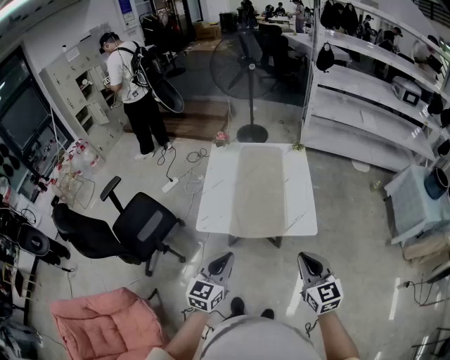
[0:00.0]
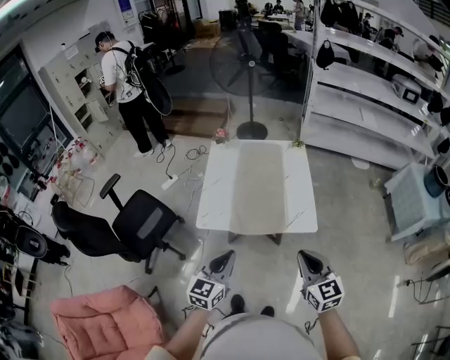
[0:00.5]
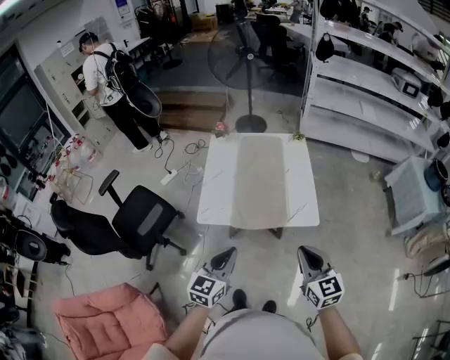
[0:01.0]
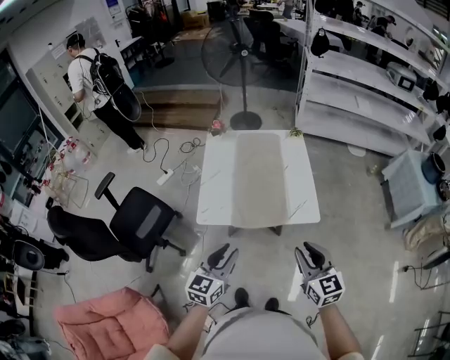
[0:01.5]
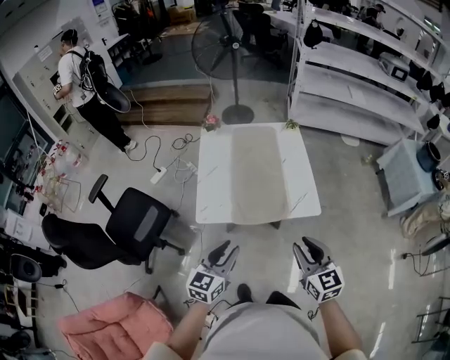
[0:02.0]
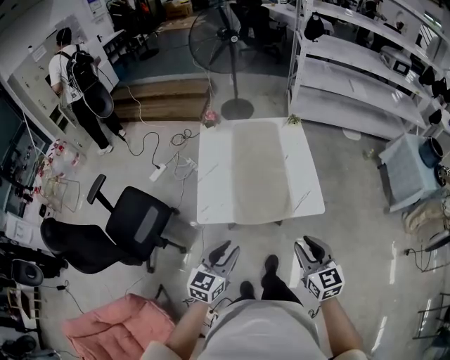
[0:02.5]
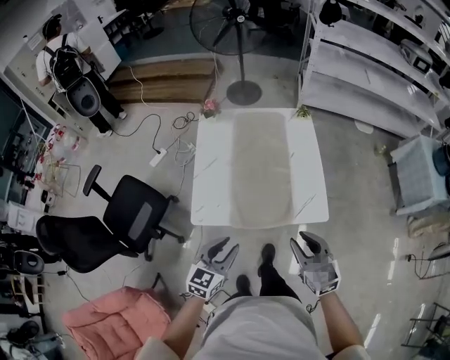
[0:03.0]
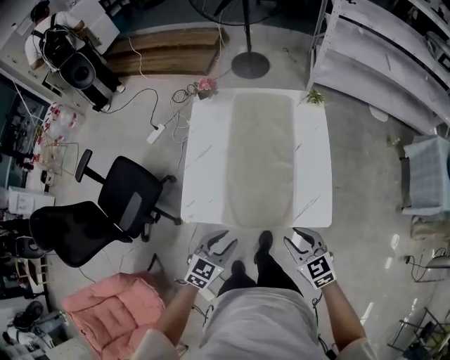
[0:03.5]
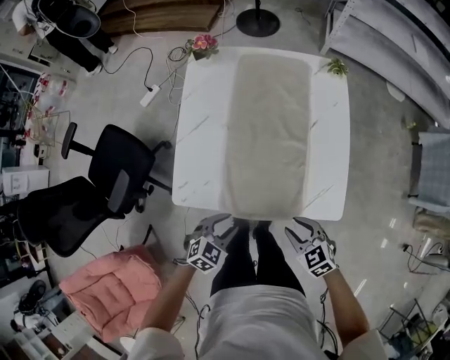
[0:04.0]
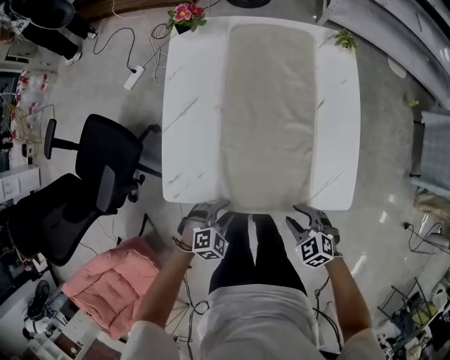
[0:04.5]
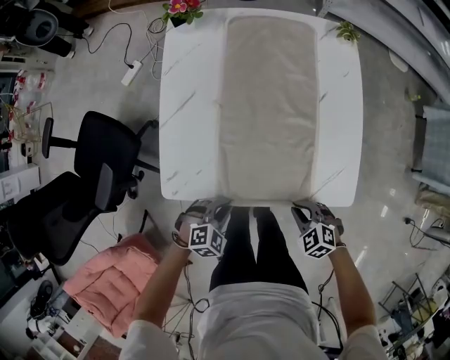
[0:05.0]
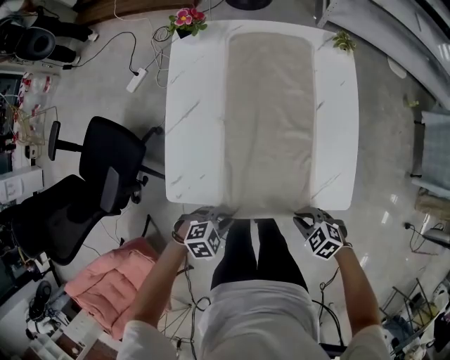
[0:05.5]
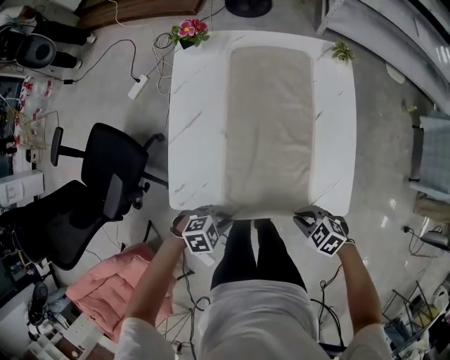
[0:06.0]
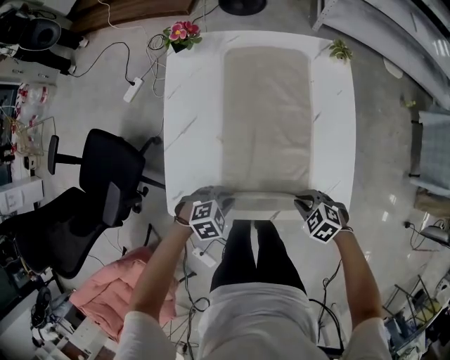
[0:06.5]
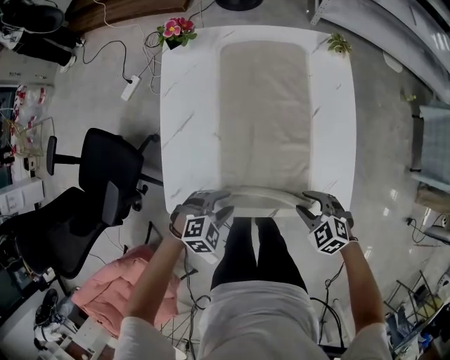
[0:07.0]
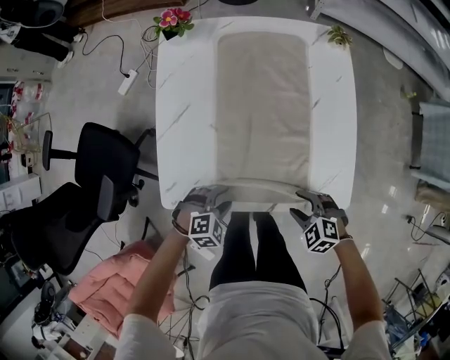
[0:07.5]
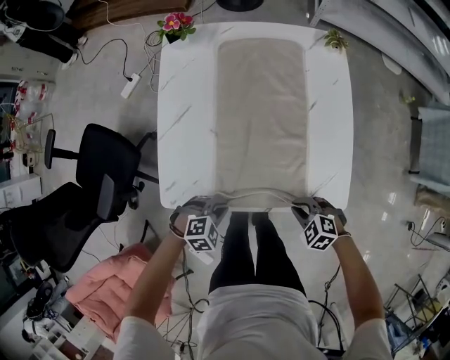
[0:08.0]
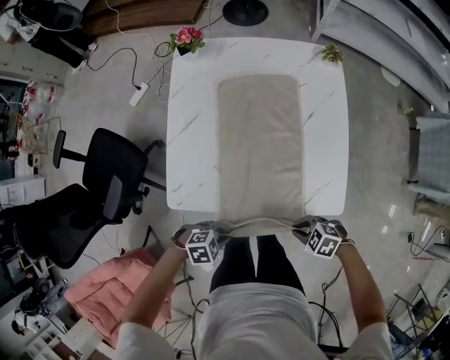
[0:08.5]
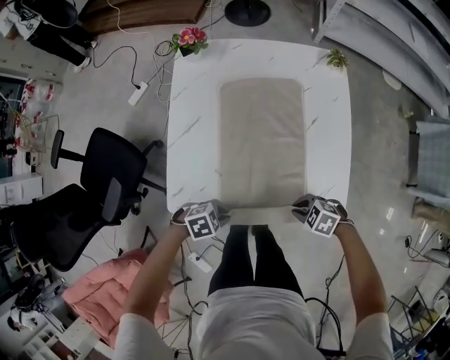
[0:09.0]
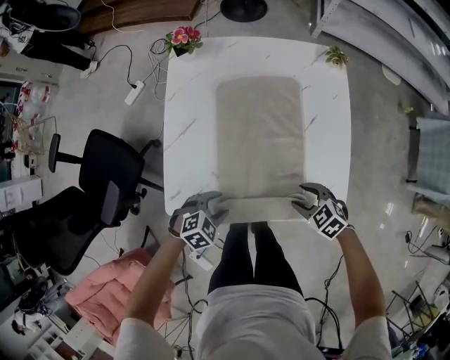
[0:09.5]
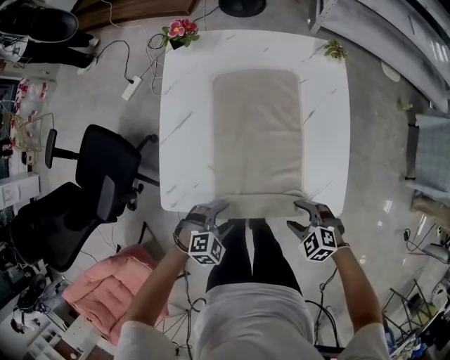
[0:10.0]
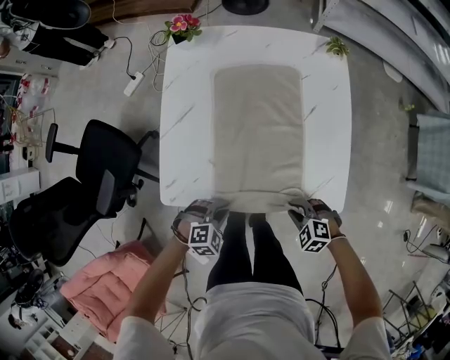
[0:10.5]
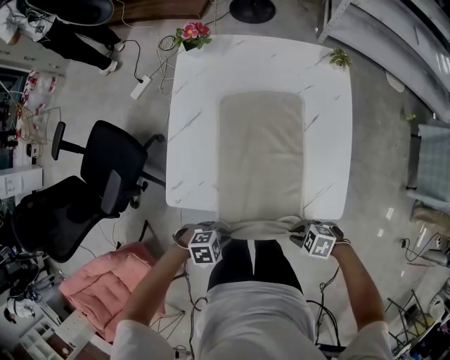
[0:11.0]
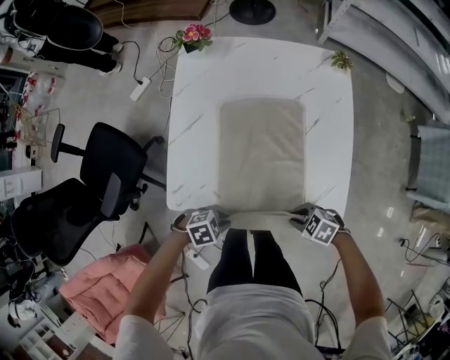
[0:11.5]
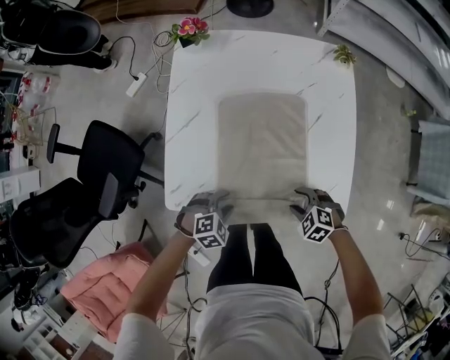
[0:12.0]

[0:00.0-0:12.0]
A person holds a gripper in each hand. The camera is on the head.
0:00.0 to 0:02.0: The left gripper ends up roughly 5 cm from where it was, and opens. The right gripper heads to the left, covering about 5 cm, and opens up.
0:02.0 to 0:04.0: The two grippers go roughly 35 cm downward and forward. The right gripper tips its fingers downward by roughly 30 degrees. Meanwhile the left gripper tips its fingers downward by approximately 40 degrees.
0:04.0 to 0:06.0: The left gripper turns by approximately 40 degrees, and closes its fingers; the right gripper goes roughly 5 cm downward, changes its angle by some 20 degrees, and closes its fingers.
0:06.0 to 0:08.0: The left gripper opens, then closes once more, while the right gripper ends up approximately 5 cm from where it was, and opens, then closes again.
0:08.0 to 0:10.0: The left gripper opens up; the right gripper opens.
0:10.0 to 0:12.0: The right gripper moves roughly 5 cm, and closes and opens again; the left gripper closes and opens again.

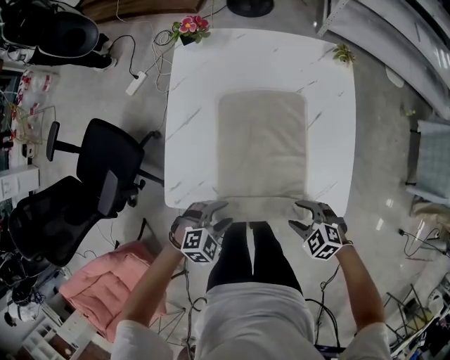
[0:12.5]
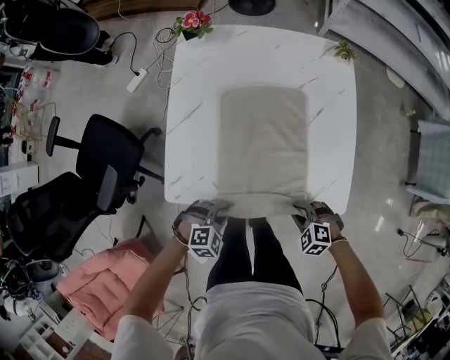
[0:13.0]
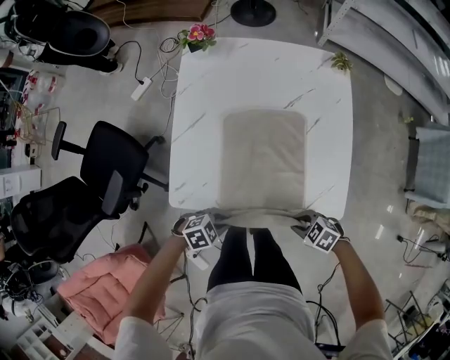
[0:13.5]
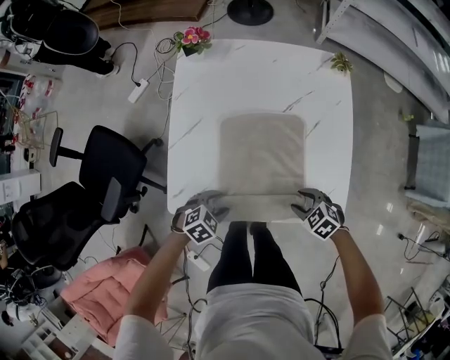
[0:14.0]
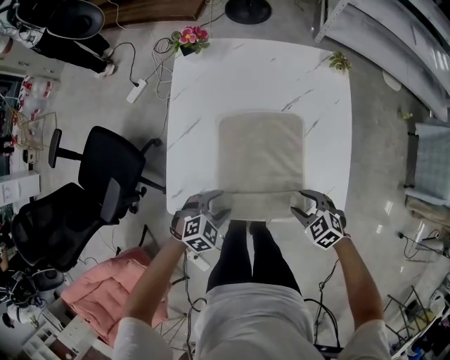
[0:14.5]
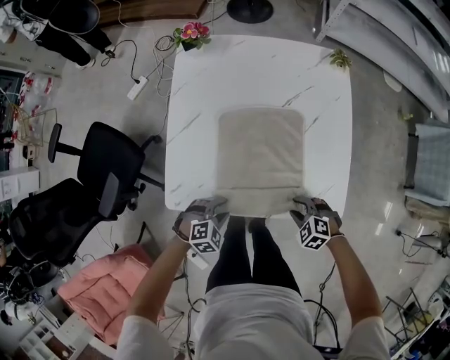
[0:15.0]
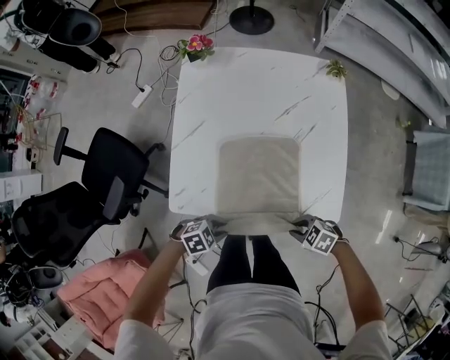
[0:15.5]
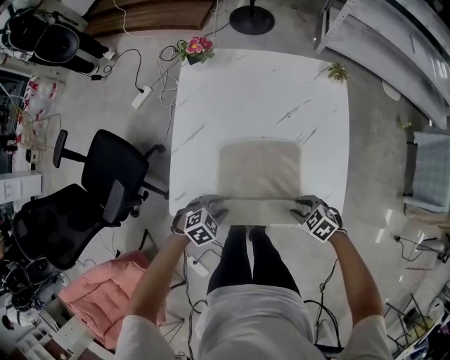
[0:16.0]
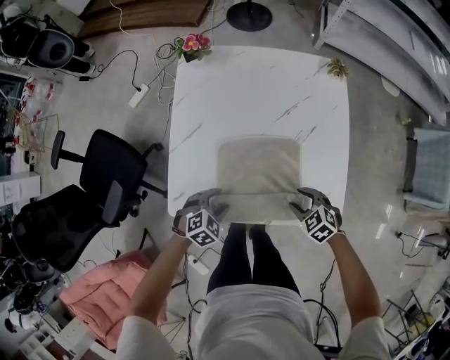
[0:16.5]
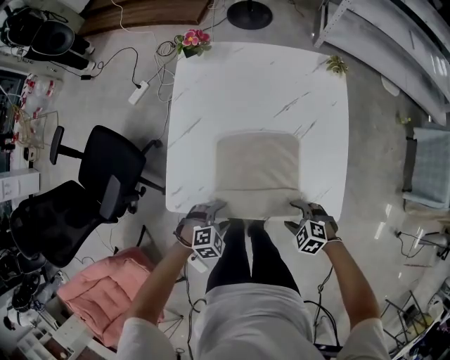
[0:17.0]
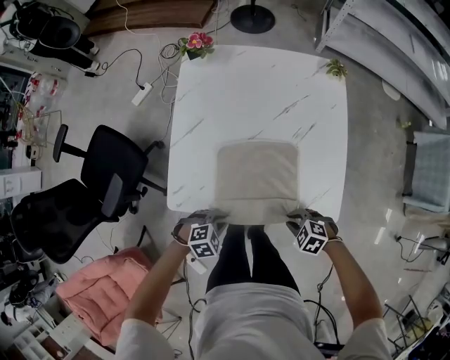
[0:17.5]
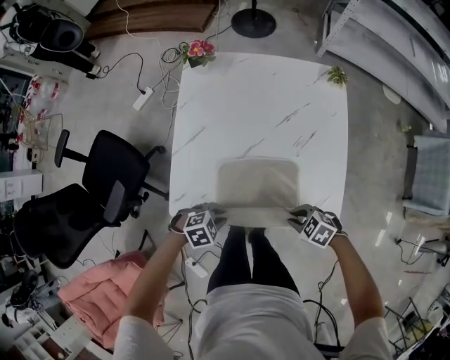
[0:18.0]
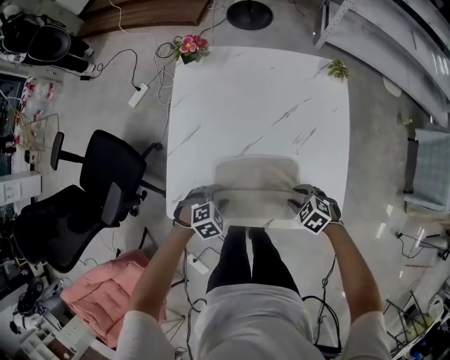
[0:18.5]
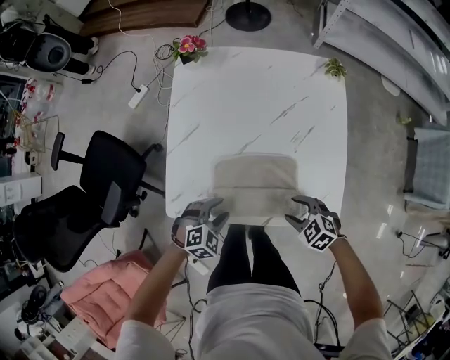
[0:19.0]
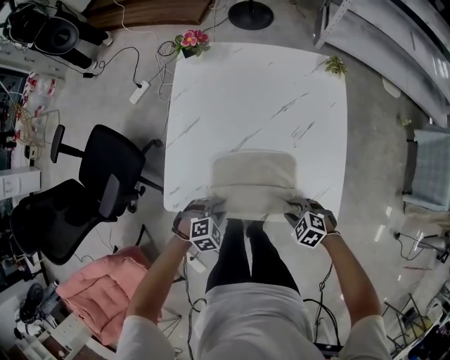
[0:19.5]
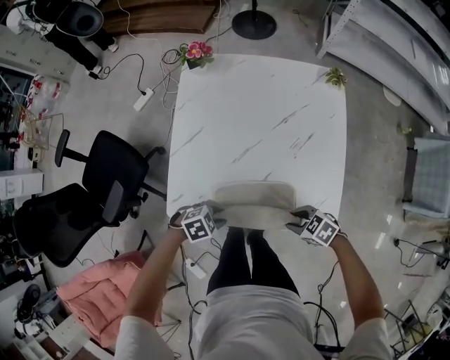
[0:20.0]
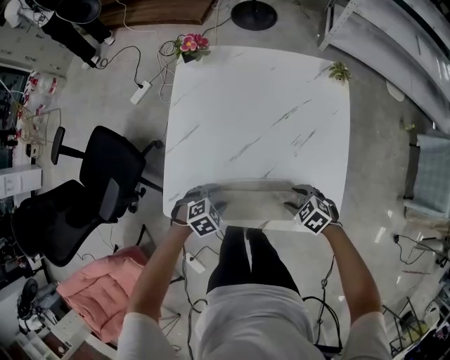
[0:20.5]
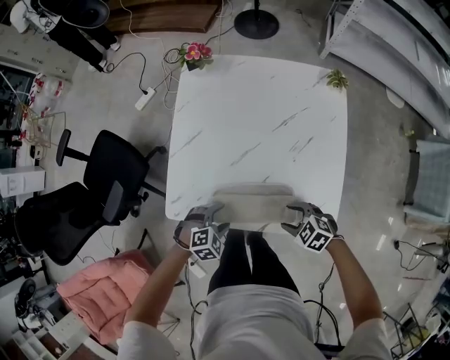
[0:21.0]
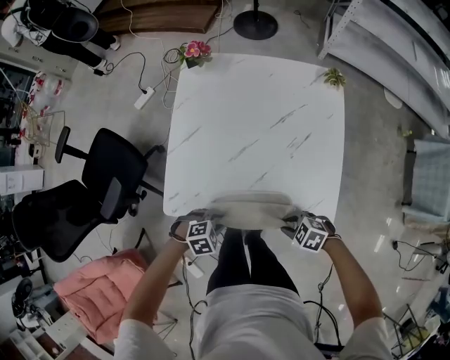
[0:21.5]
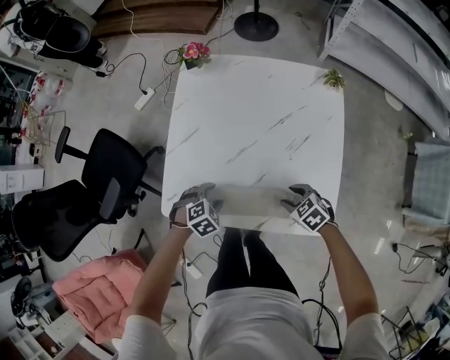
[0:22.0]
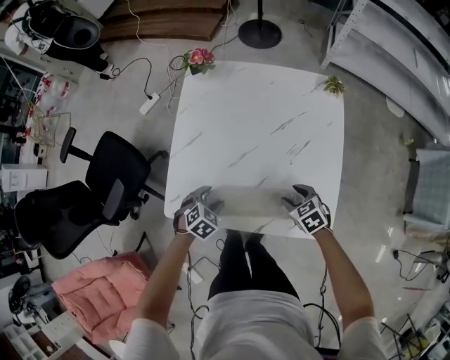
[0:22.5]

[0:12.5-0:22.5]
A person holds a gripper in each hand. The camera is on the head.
0:12.5 to 0:14.5: The left gripper ends up some 5 cm from where it was, and closes, then opens again. Meanwhile the right gripper moves roughly 5 cm, and closes, then opens again.
0:14.5 to 0:16.5: The right gripper closes and opens again. The left gripper closes, then opens again.
0:16.5 to 0:18.5: The left gripper closes, then opens again.
0:20.5 to 0:22.5: The right gripper closes and opens again, while the left gripper rotates about 20 degrees, and closes and opens again.

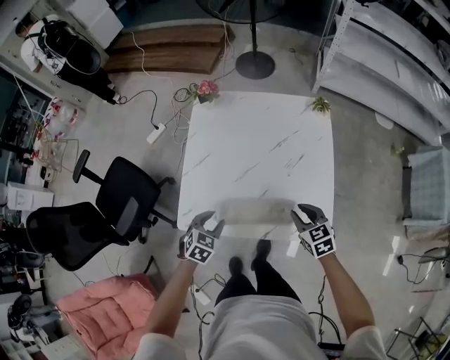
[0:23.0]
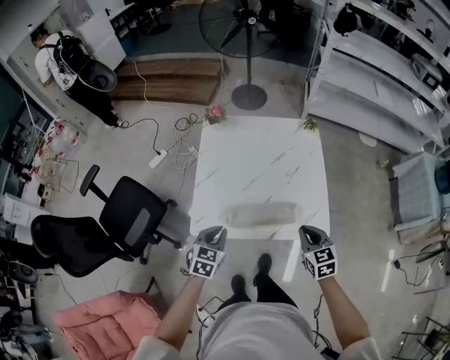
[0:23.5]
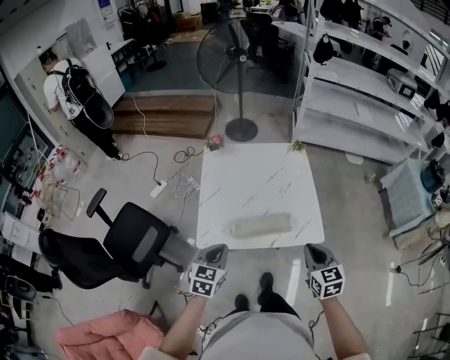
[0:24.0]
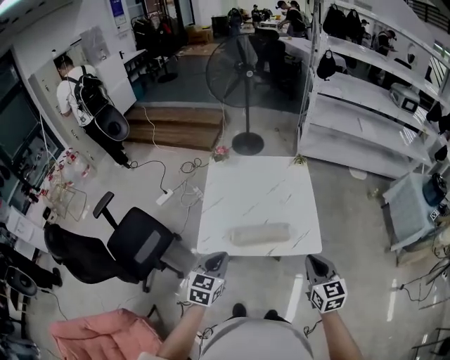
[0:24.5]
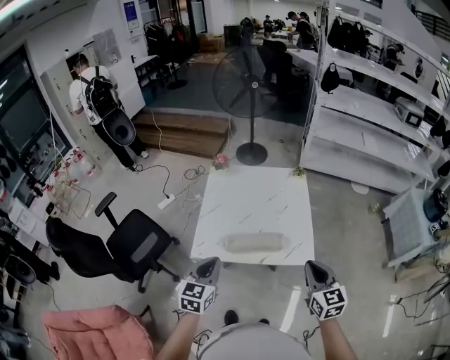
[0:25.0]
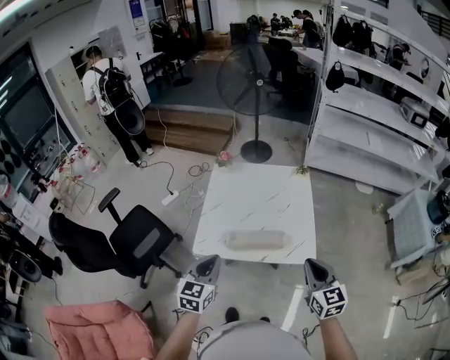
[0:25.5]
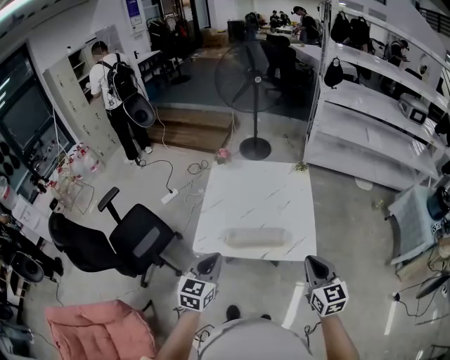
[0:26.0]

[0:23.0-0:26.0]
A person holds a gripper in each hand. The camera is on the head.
0:23.0 to 0:24.5: The right gripper heads backward and upward, covering approximately 35 cm, turns by approximately 30 degrees, and closes its fingers. Meanwhile the left gripper moves upward and backward, about 30 cm, rotates about 30 degrees, and closes its fingers.
0:24.5 to 0:26.0: The right gripper ends up approximately 5 cm from where it was. The left gripper travels upward by about 5 cm.

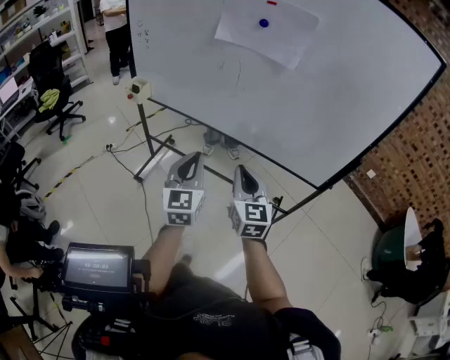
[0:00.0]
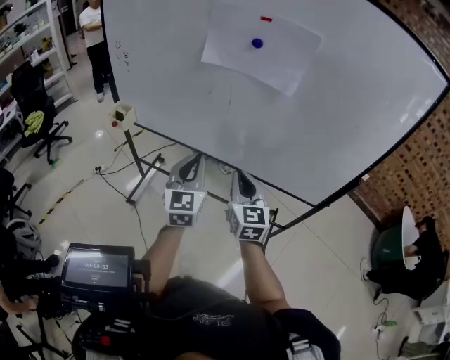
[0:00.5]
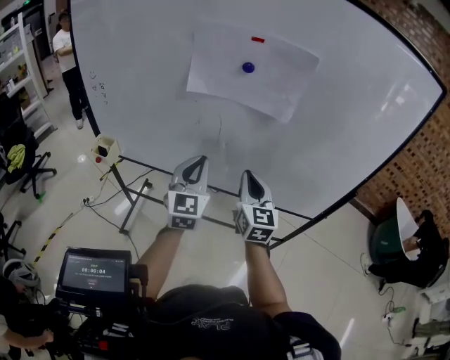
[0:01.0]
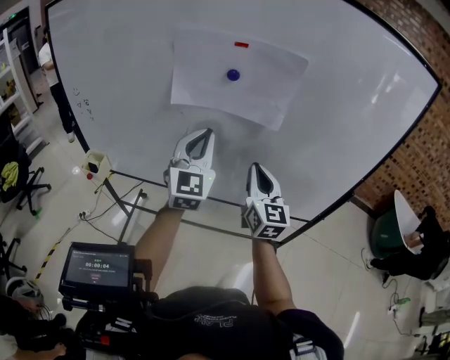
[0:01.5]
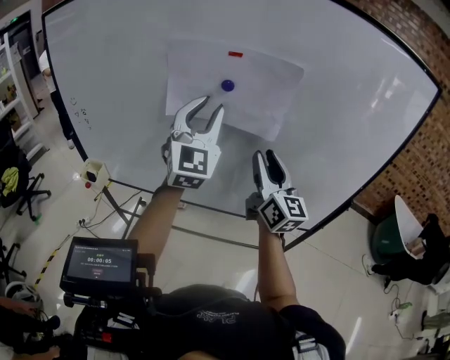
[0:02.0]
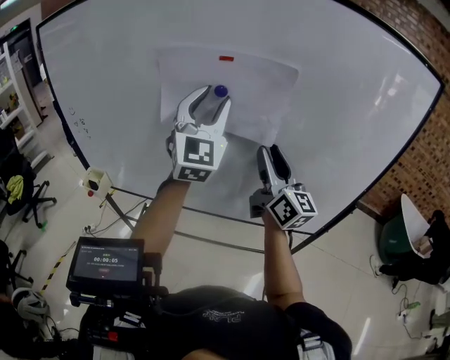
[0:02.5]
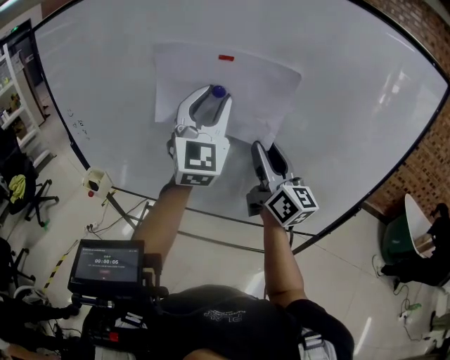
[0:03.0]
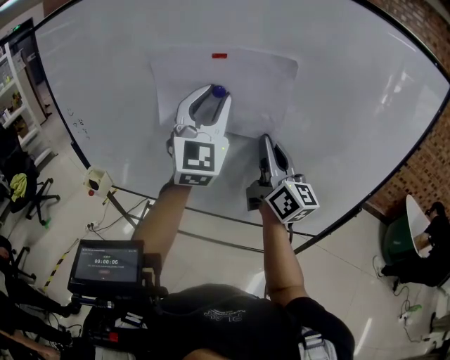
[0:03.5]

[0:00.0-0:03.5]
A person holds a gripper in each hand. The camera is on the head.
0:00.0 to 0:02.0: The two grippers go about 30 cm forward and upward. The right gripper changes its angle by some 30 degrees, and opens, while the left gripper changes its angle by approximately 40 degrees, and opens its fingers.
0:02.0 to 0:03.5: The right gripper moves approximately 5 cm, and closes.
